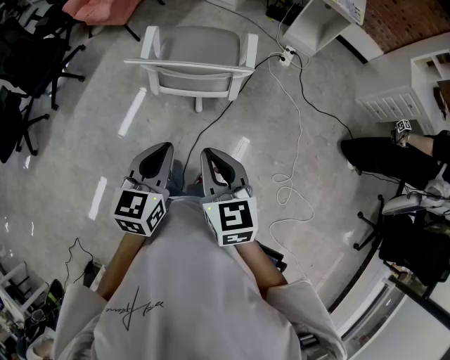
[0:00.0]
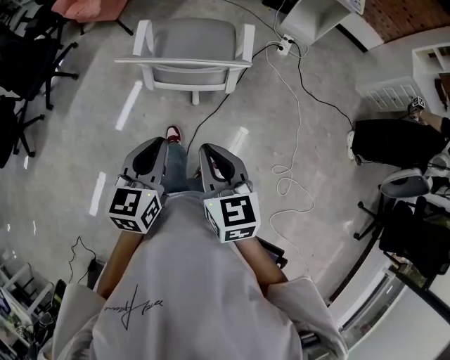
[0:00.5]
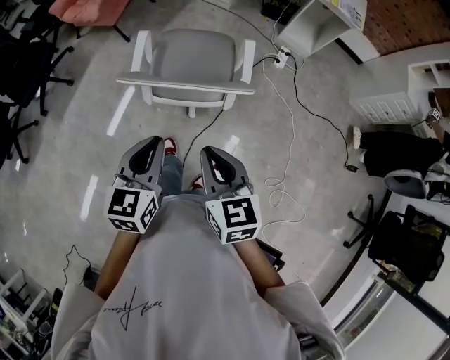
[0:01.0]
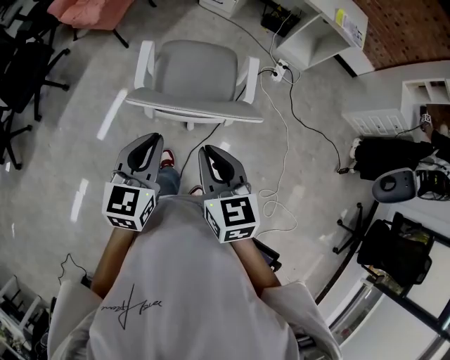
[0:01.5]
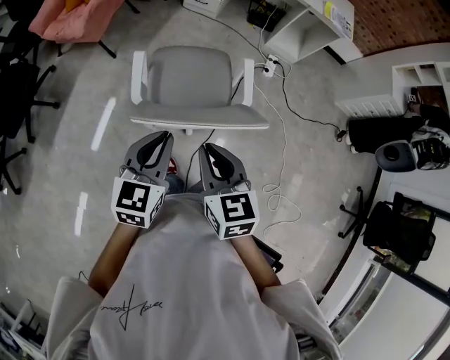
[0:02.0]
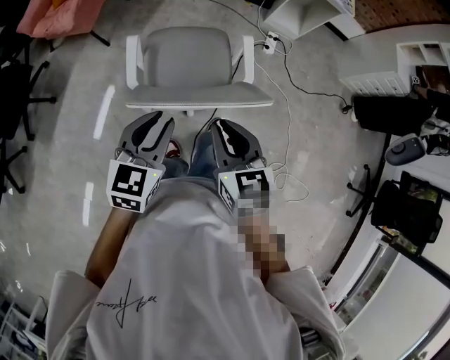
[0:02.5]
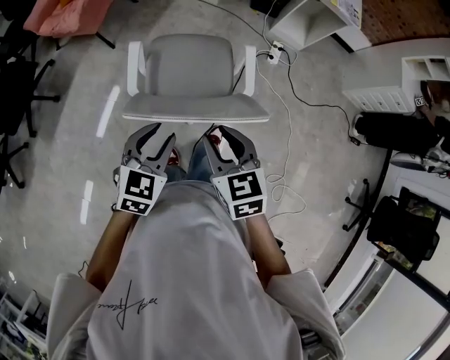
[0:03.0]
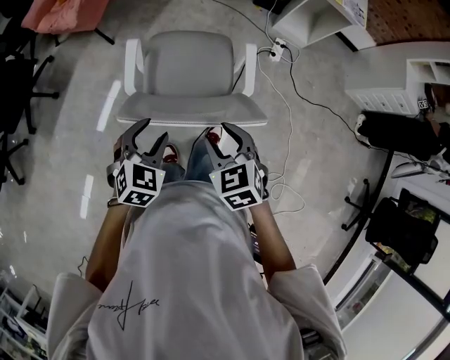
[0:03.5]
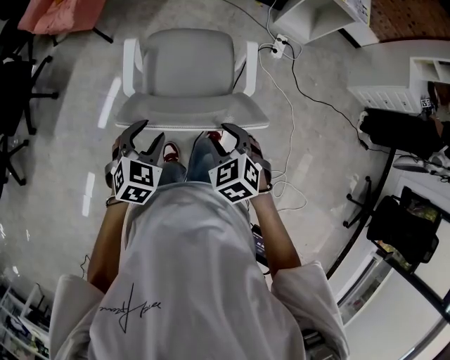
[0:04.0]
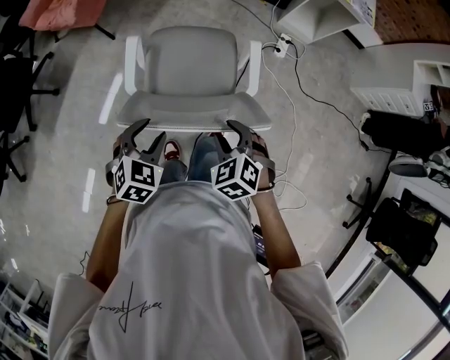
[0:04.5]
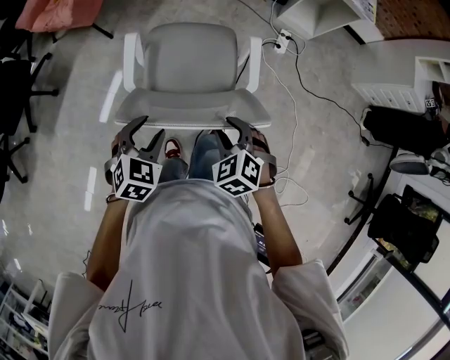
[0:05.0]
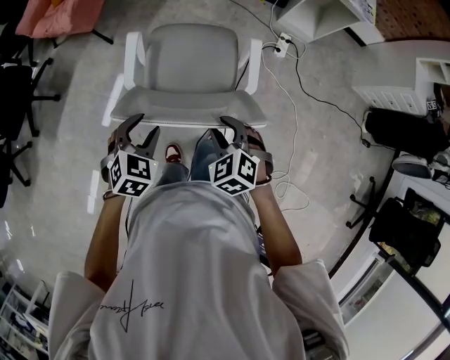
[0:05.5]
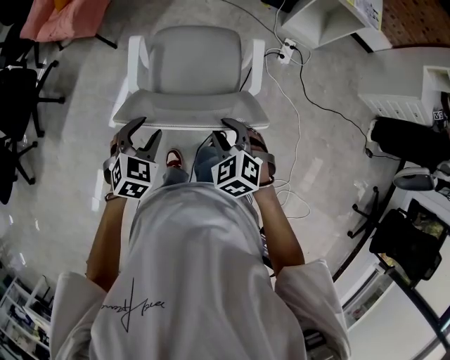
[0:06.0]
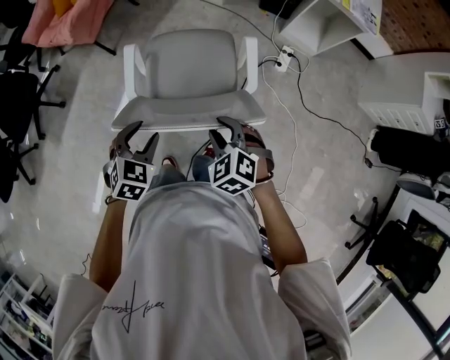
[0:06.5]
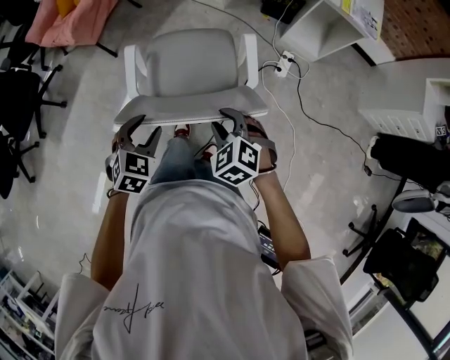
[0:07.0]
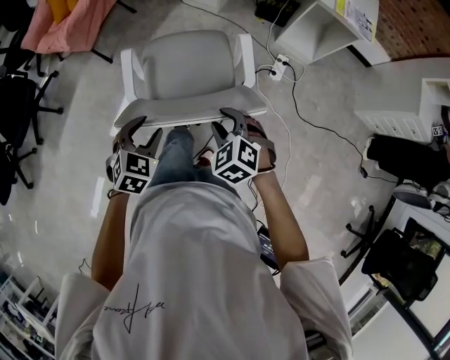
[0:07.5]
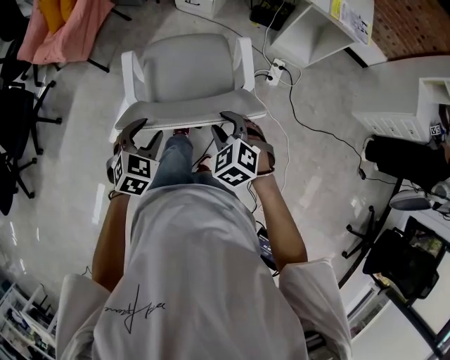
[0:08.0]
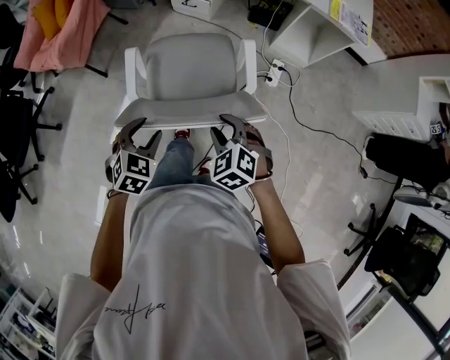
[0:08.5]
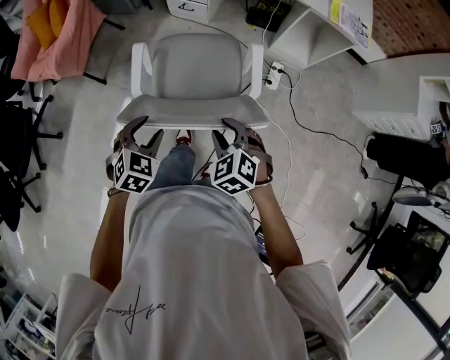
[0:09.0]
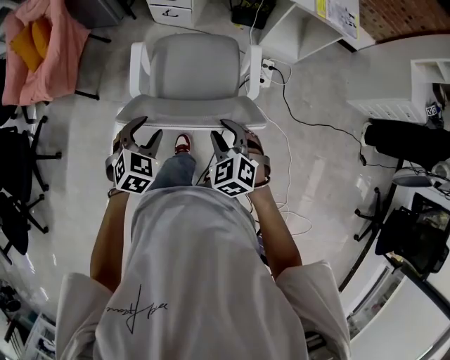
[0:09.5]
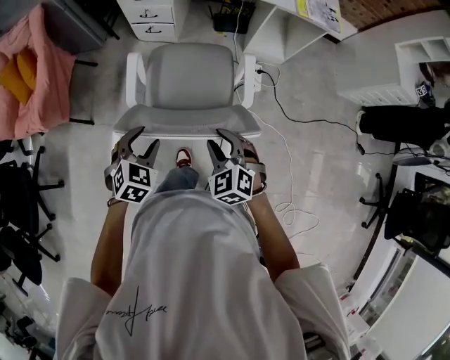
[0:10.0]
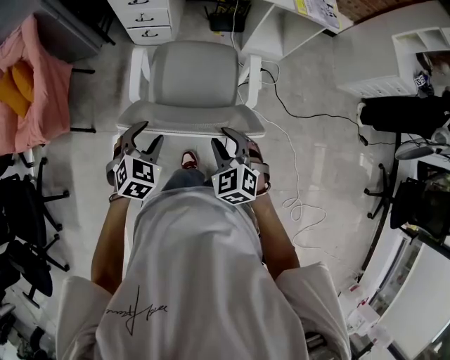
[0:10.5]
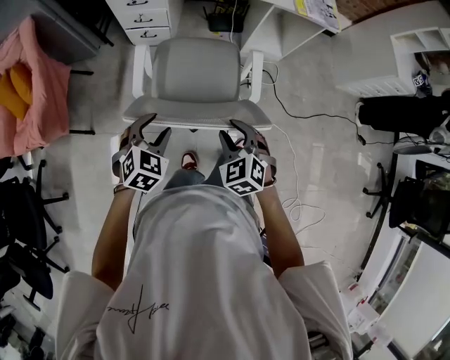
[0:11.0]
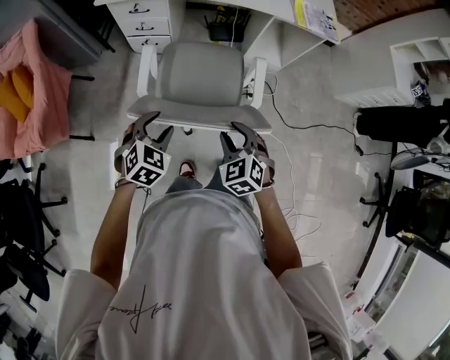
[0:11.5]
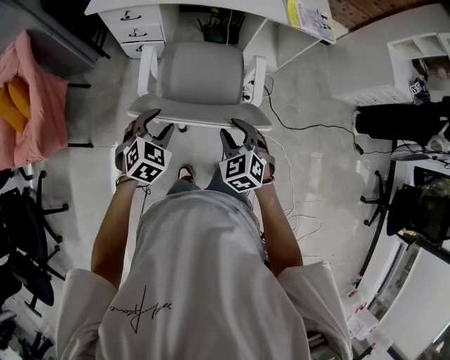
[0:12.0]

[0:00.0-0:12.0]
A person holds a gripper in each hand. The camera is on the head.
0:00.0 to 0:02.0: The grippers both shift forward and to the left by roughly 25 cm.
0:02.0 to 0:04.0: The right gripper shifts roughly 15 cm downward, to the right and forward, rotates about 40 degrees, and opens its fingers, while the left gripper moves downward, some 10 cm, changes its angle by about 30 degrees, and opens.
0:04.0 to 0:06.0: The grippers both shift forward by approximately 10 cm.
0:06.0 to 0:08.0: The left gripper shifts about 15 cm to the right and forward. Meanwhile the right gripper goes approximately 15 cm forward and to the right.
0:08.0 to 0:10.0: The right gripper is displaced forward by about 10 cm, and turns by approximately 20 degrees; the left gripper heads forward, covering roughly 20 cm.
0:10.0 to 0:12.0: The grippers both shift forward by about 15 cm.

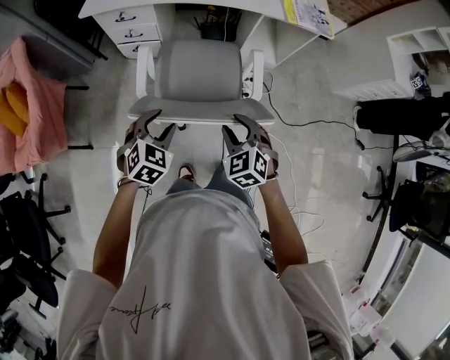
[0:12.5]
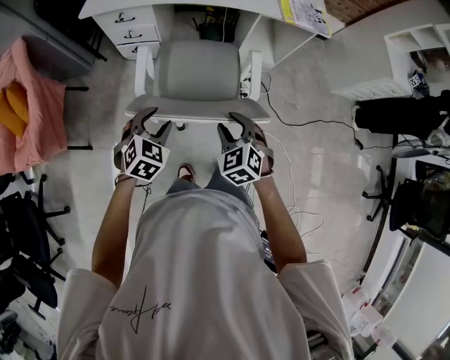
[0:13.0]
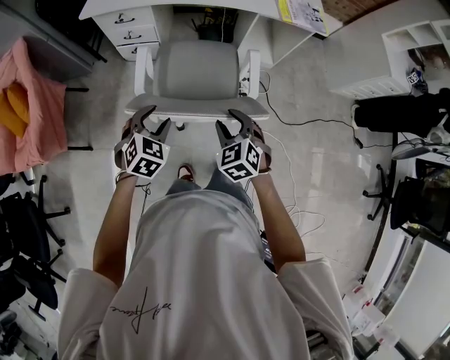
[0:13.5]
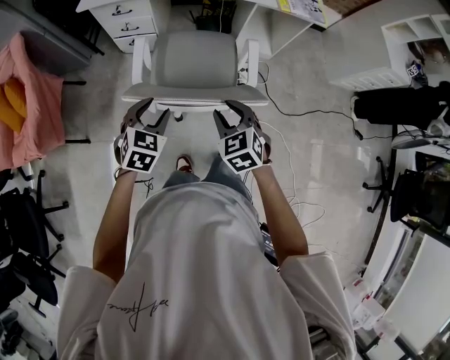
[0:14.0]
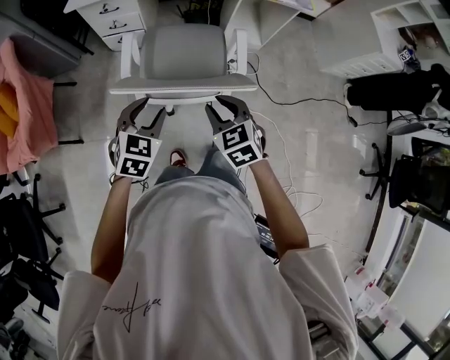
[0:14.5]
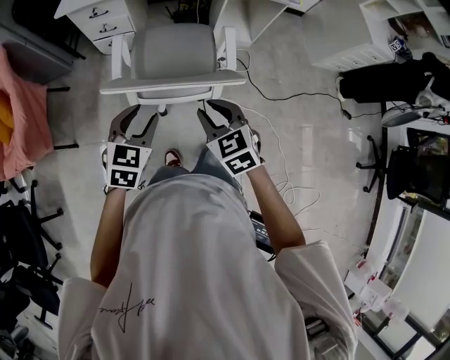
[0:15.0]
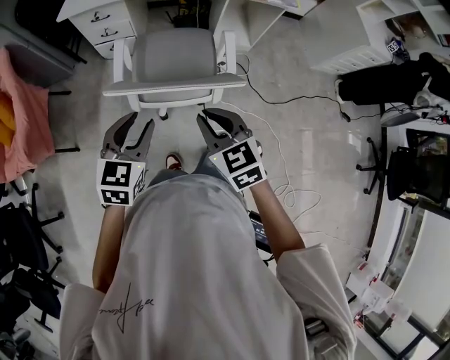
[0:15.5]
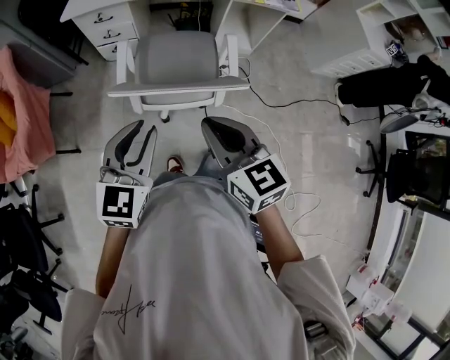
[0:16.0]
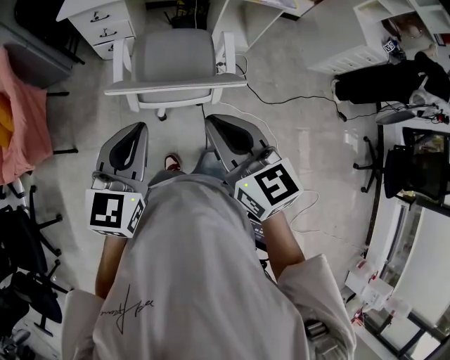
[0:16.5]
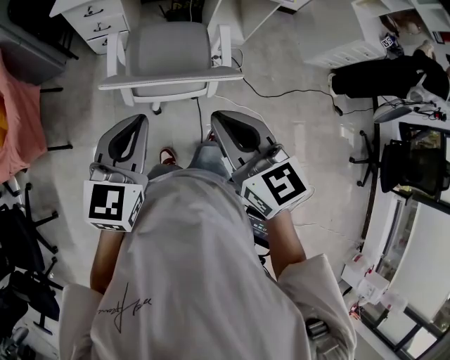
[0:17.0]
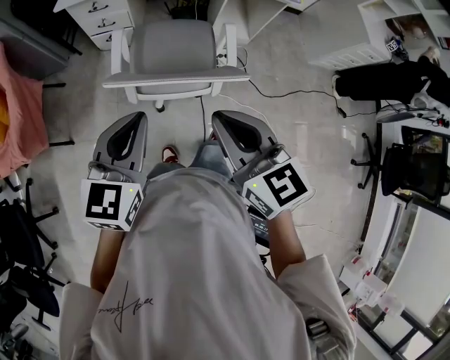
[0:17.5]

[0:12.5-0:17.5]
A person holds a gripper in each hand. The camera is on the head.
0:12.5 to 0:15.0: Both grippers move backward and upward, roughly 10 cm.
0:15.0 to 0:17.5: Both grippers move upward, roughly 15 cm. The left gripper turns by roughly 20 degrees, and closes up, while the right gripper changes its angle by about 30 degrees, and closes.

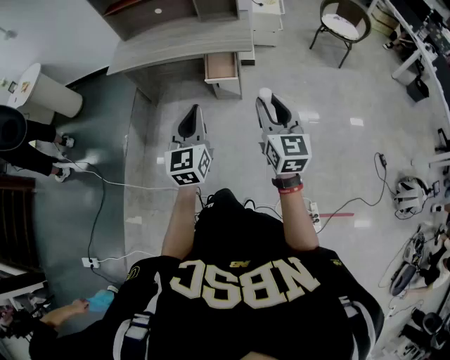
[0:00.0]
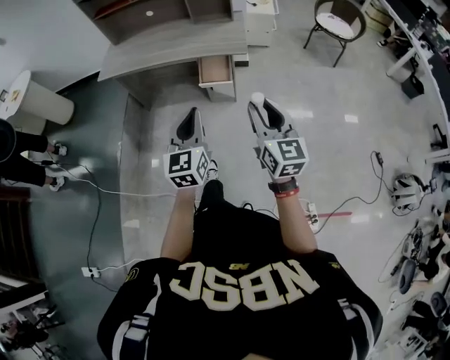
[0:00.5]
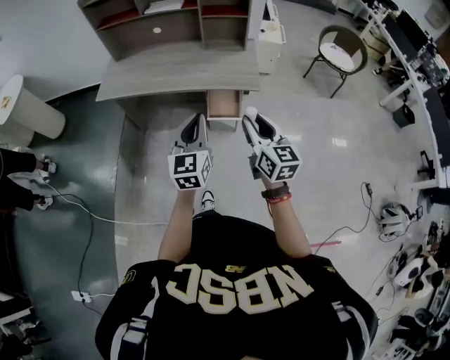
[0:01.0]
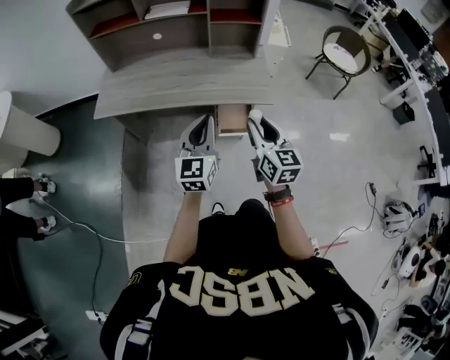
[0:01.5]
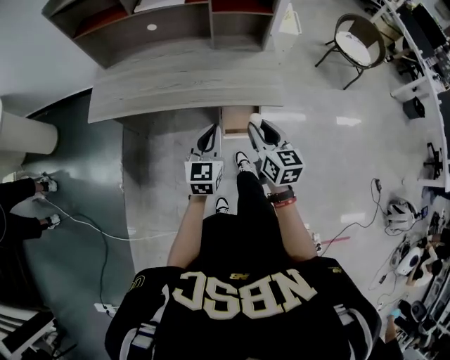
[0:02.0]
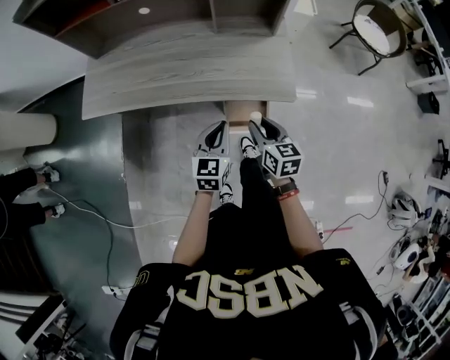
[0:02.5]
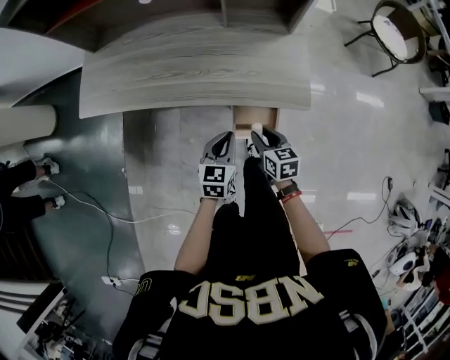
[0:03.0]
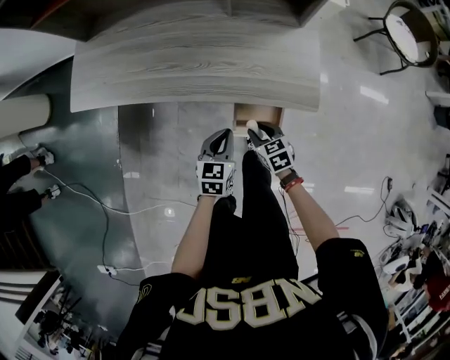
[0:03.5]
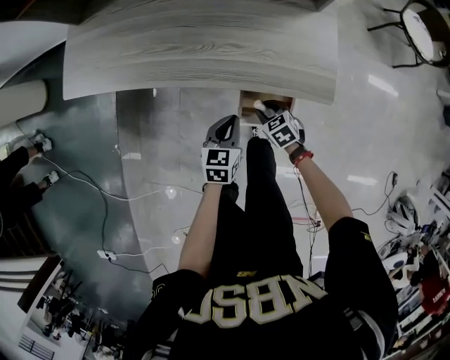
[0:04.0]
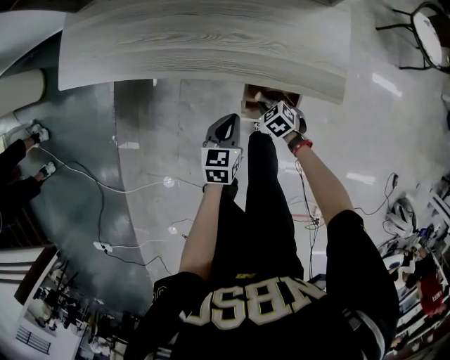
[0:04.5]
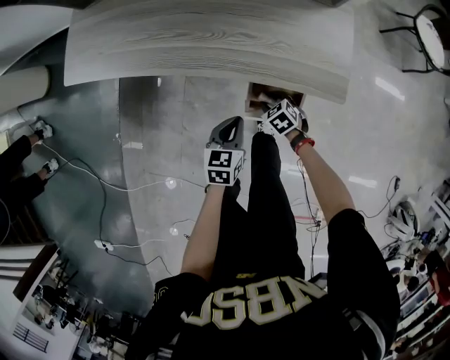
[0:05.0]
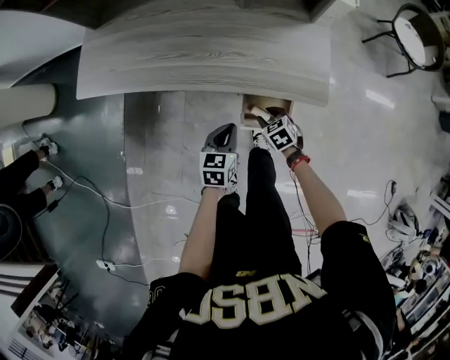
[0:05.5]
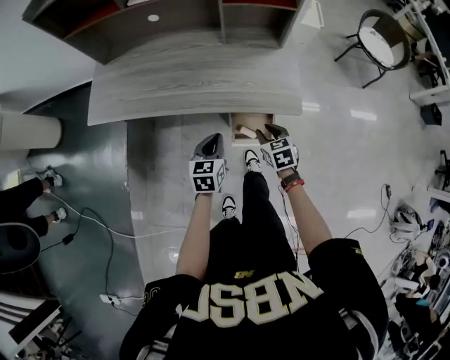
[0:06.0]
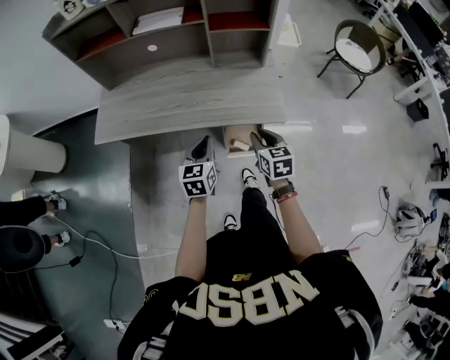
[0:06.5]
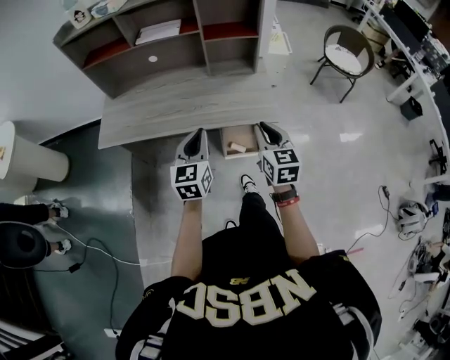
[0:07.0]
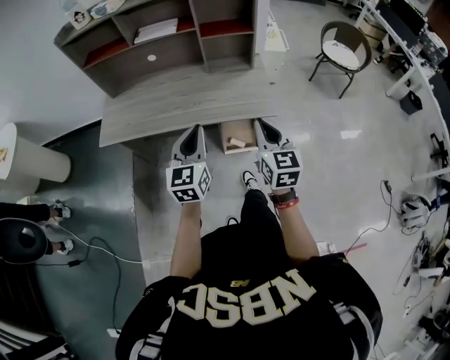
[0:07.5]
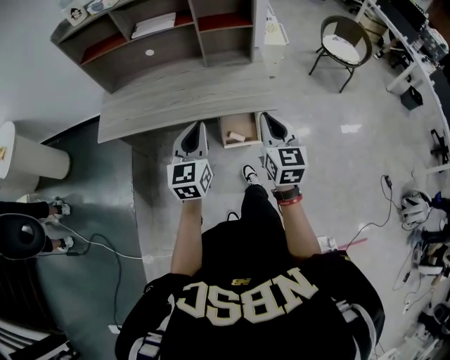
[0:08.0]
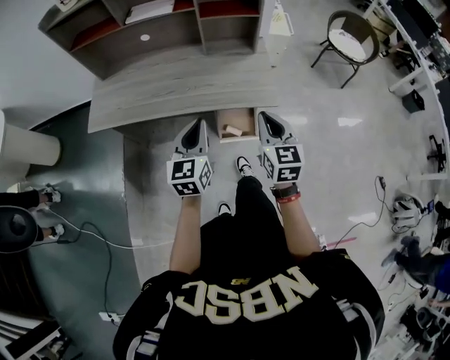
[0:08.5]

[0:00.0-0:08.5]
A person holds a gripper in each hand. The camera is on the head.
0:00.0 to 0:02.0: The left gripper heads forward, covering some 40 cm. Meanwhile the right gripper goes roughly 40 cm forward and to the left.
0:02.0 to 0:04.0: Both grippers move downward, roughly 30 cm. The right gripper tilts its fingers roughly 40 degrees downward. The left gripper swivels some 30 degrees.
0:04.0 to 0:06.5: The grippers both shift upward by roughly 25 cm. The right gripper swivels roughly 40 degrees.
0:06.5 to 0:08.5: The grippers both shift upward by roughly 10 cm. The right gripper closes.

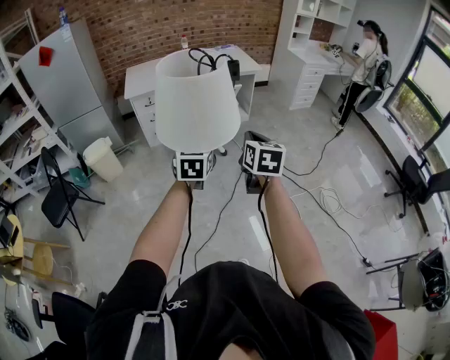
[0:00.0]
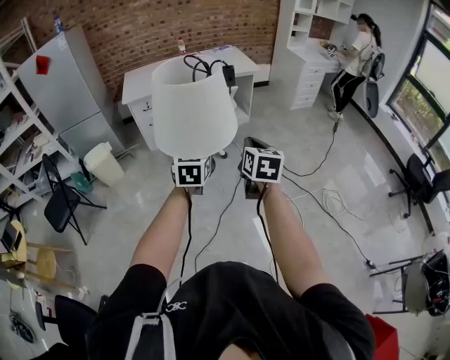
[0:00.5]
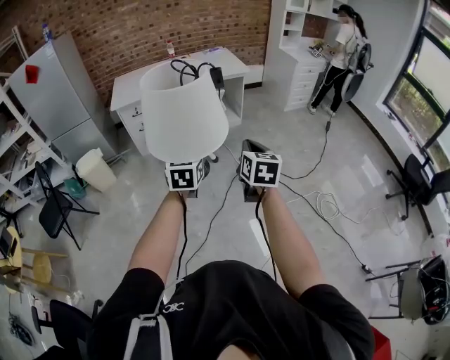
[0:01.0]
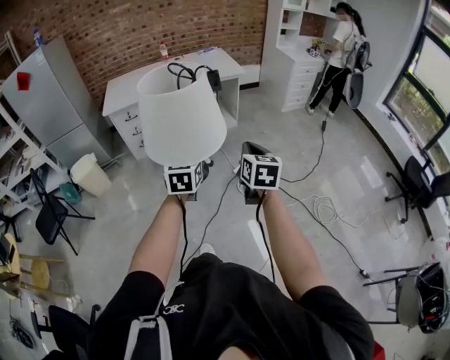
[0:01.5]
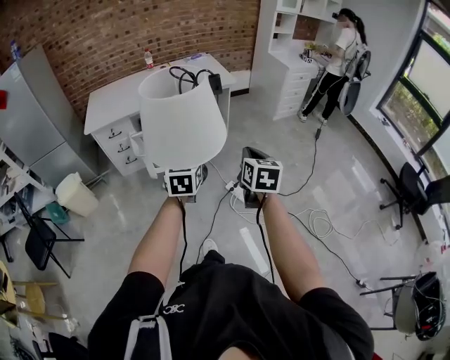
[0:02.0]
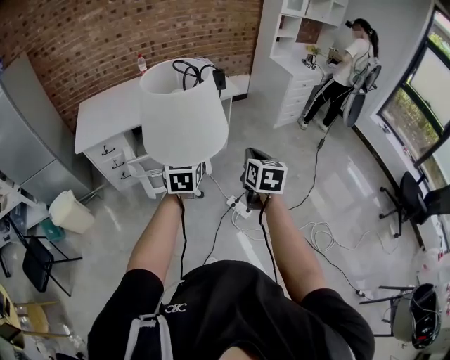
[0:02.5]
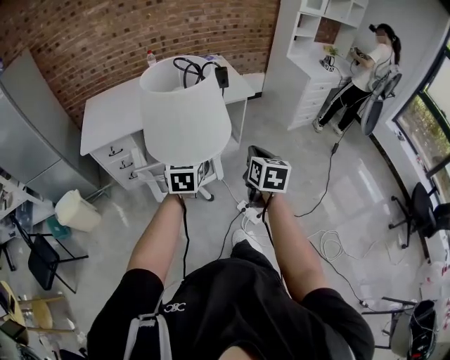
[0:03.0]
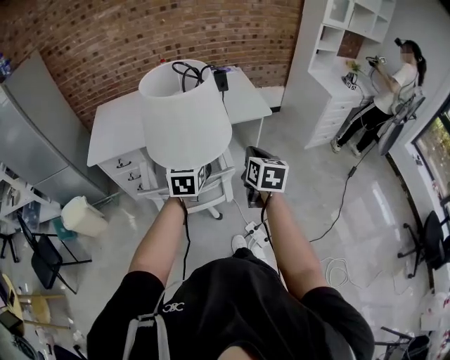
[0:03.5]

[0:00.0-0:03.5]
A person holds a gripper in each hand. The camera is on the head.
0:00.0 to 0:02.0: Both grippers travel together forward and to the right, about 30 cm.
0:02.0 to 0:03.5: Both grippers move forward, about 40 cm.
